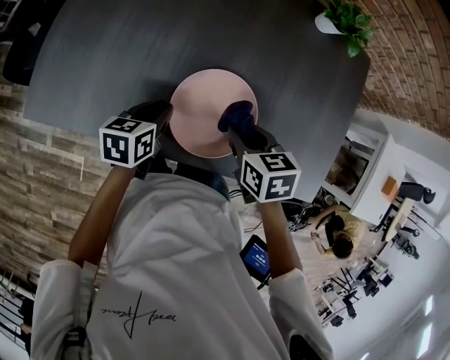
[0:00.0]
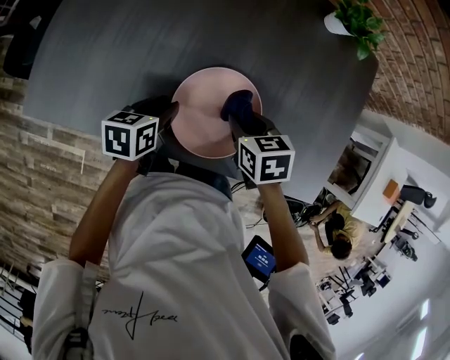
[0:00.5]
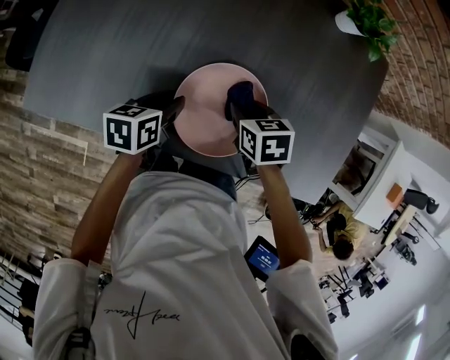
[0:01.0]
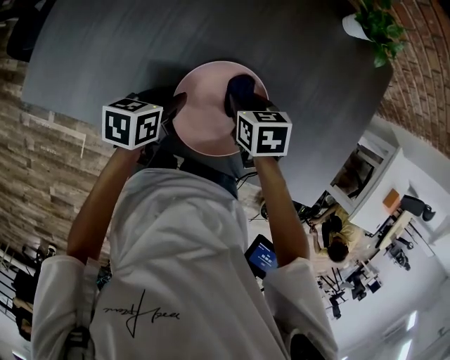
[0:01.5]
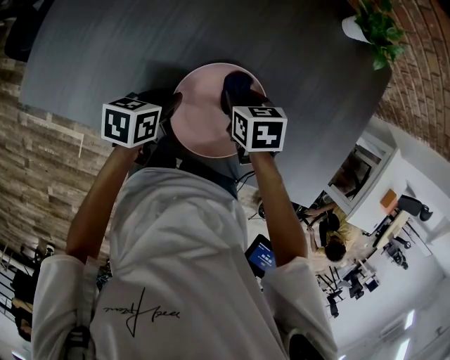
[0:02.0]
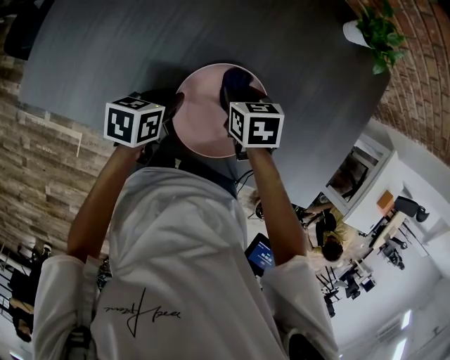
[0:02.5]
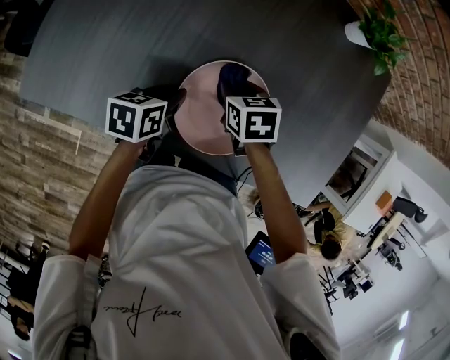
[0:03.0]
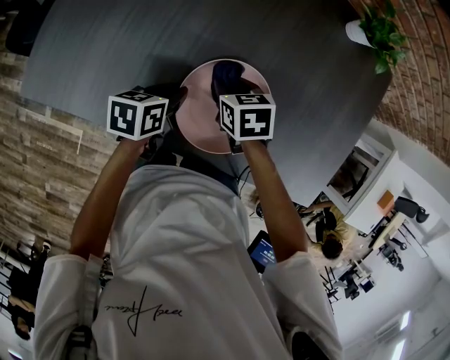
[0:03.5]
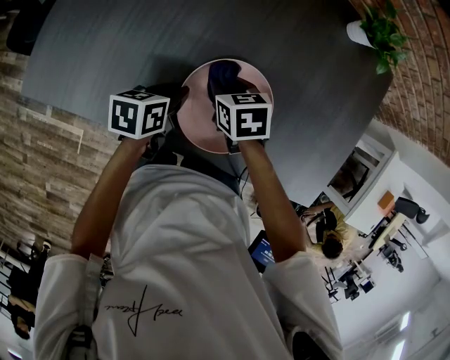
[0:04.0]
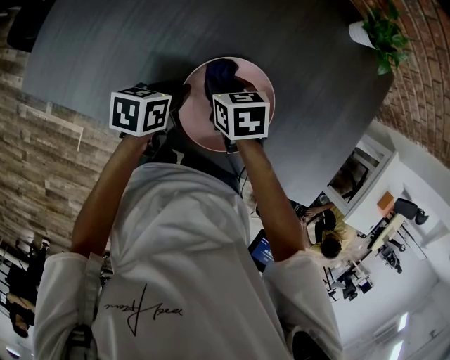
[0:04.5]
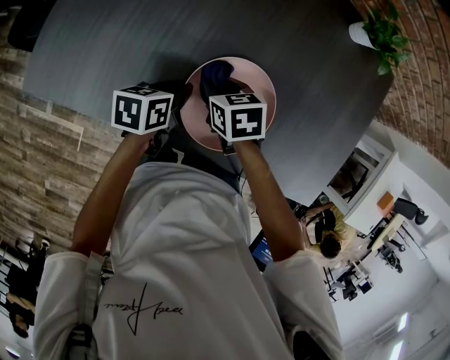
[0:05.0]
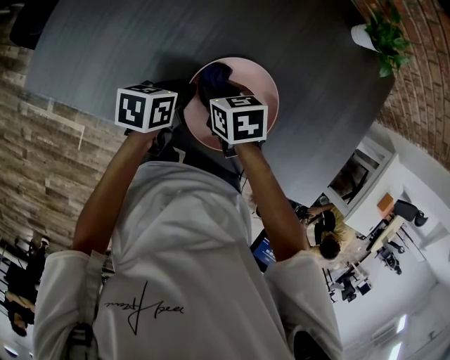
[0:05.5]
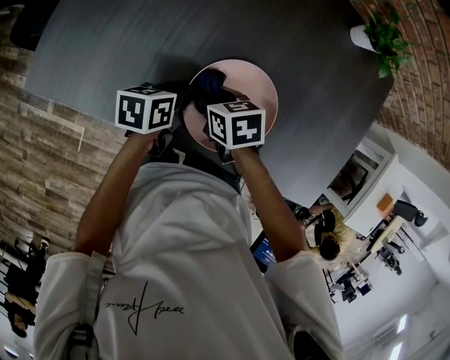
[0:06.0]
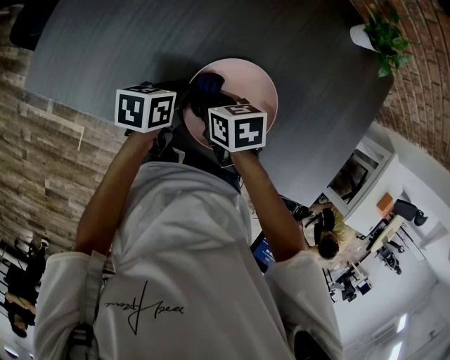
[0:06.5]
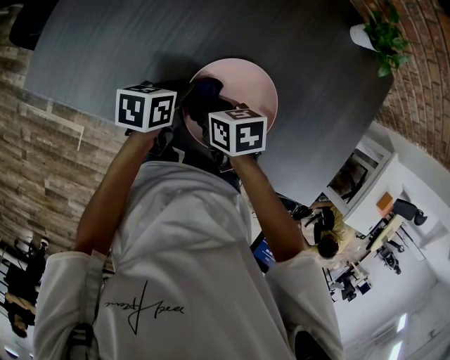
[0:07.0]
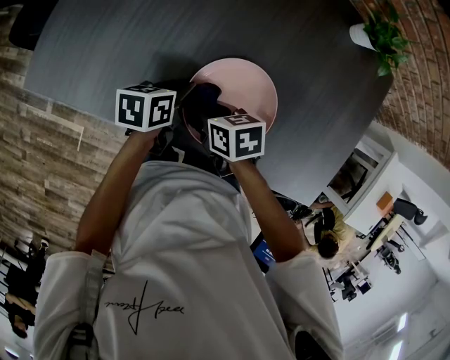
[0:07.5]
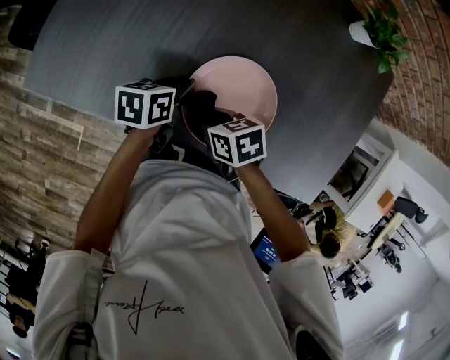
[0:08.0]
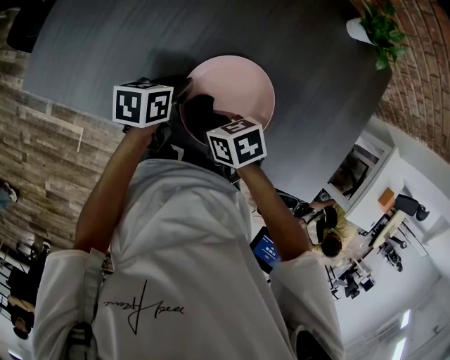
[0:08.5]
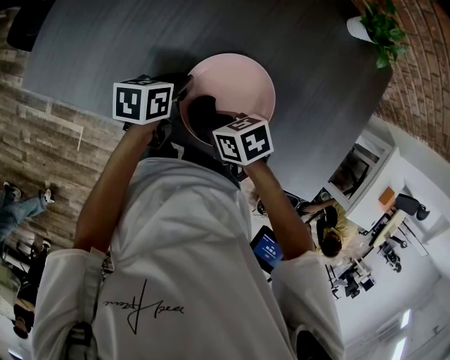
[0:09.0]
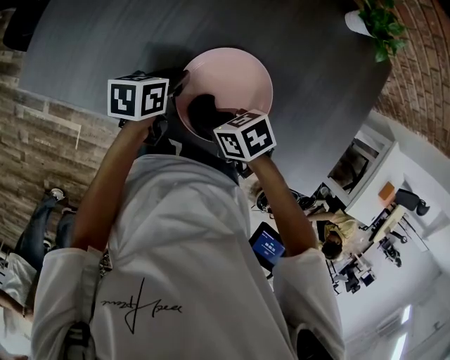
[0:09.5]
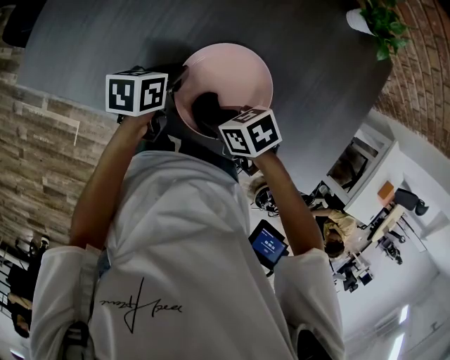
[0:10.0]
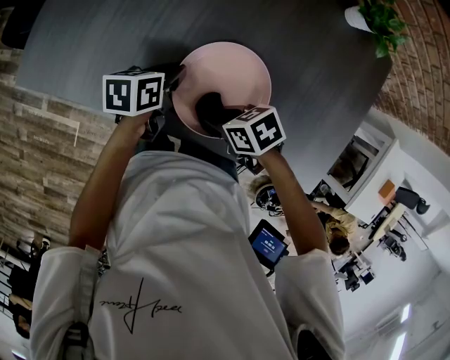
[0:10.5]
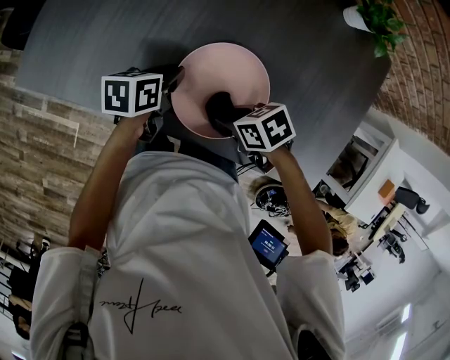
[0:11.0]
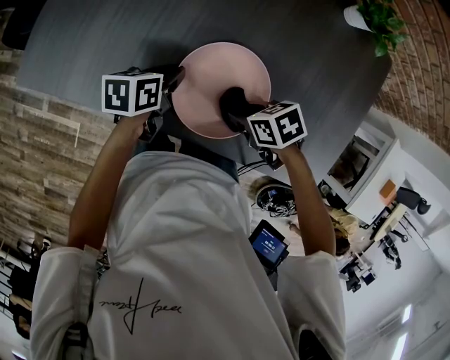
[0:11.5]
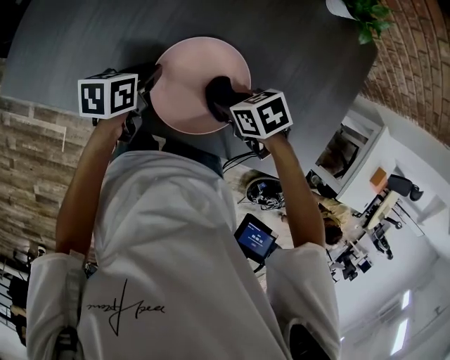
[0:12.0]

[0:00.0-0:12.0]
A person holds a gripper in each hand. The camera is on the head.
0:00.0 to 0:02.0: The right gripper travels downward and forward by roughly 10 cm.
0:02.0 to 0:04.0: The right gripper travels to the left by roughly 5 cm.
0:04.0 to 0:06.0: The right gripper ends up some 5 cm from where it was.
0:06.0 to 0:08.0: The right gripper changes place by some 5 cm.
0:08.0 to 0:10.0: The right gripper ends up roughly 5 cm from where it was.
0:10.0 to 0:12.0: The right gripper shifts by roughly 10 cm.

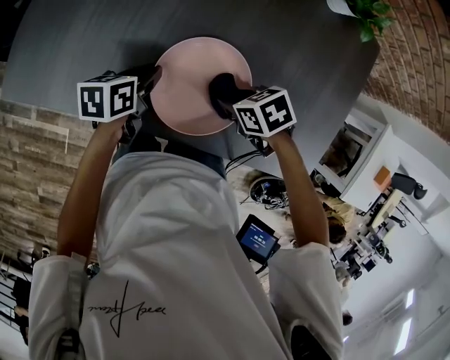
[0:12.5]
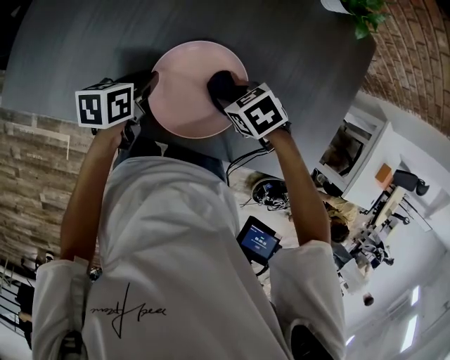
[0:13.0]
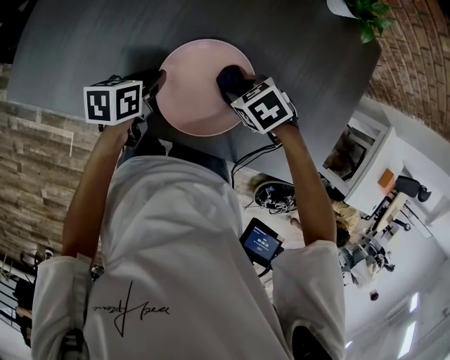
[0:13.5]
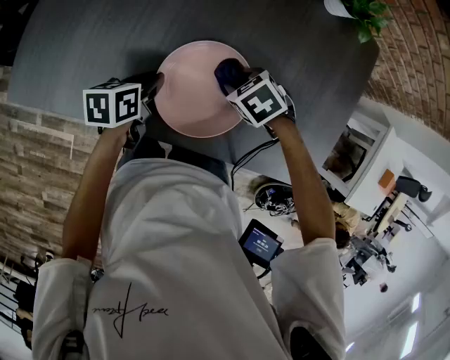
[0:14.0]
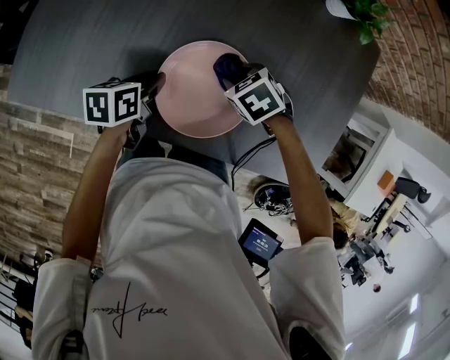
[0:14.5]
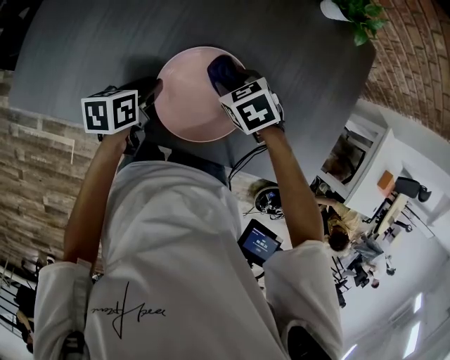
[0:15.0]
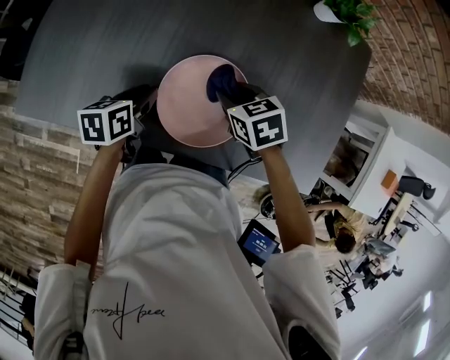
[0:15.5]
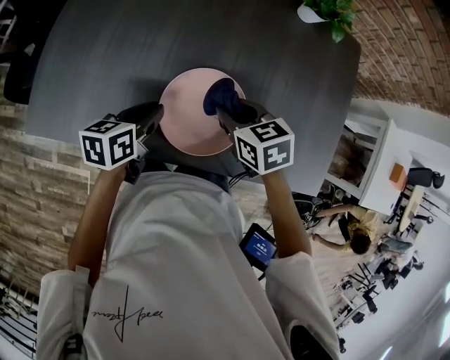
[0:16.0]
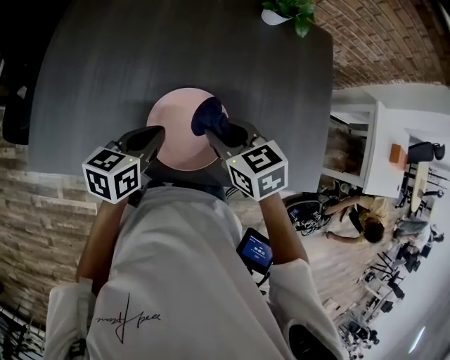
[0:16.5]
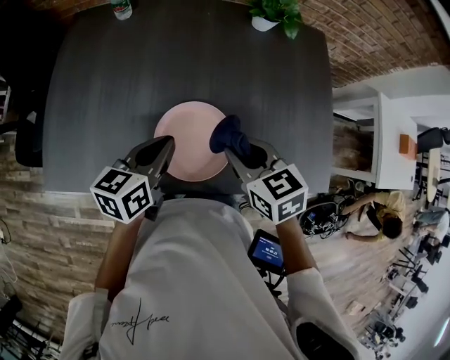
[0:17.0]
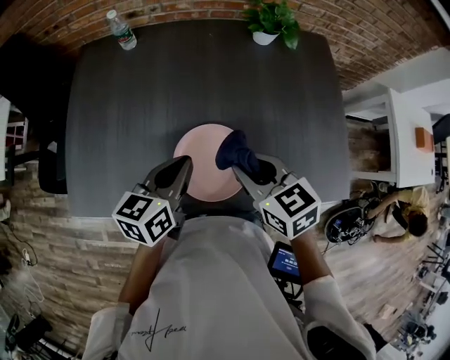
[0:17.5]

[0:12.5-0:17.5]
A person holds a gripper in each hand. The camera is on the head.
0:12.5 to 0:15.0: The right gripper changes place by roughly 5 cm, and changes its angle by some 20 degrees.
0:15.0 to 0:17.5: The grippers both shift upward by some 20 cm. The left gripper changes its angle by about 30 degrees, and closes up, while the right gripper points its fingers approximately 40 degrees further upward.

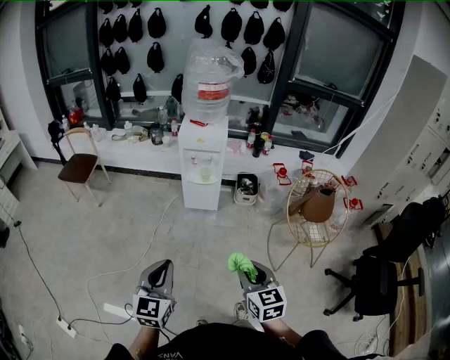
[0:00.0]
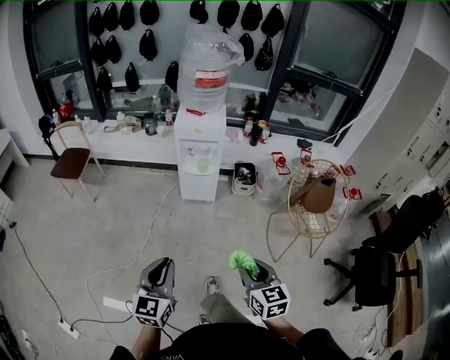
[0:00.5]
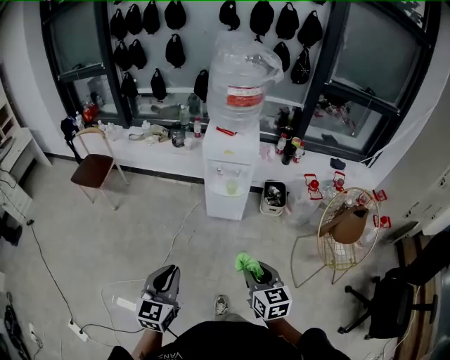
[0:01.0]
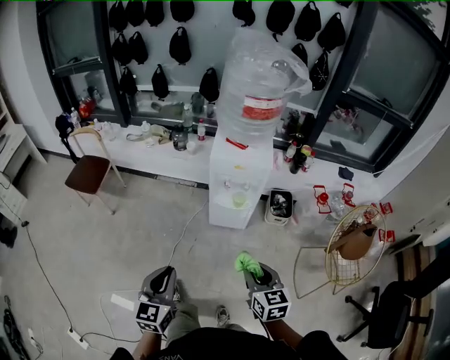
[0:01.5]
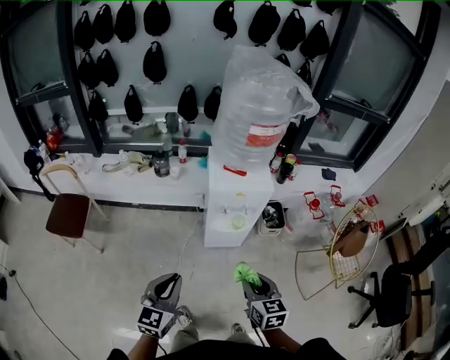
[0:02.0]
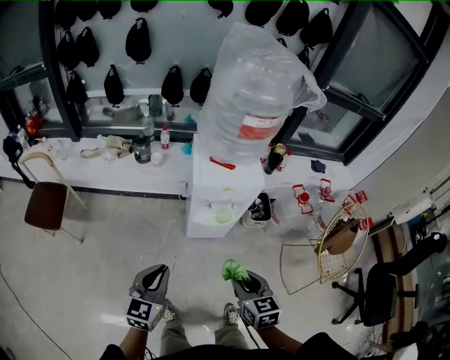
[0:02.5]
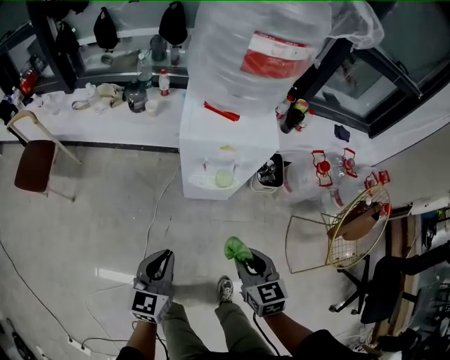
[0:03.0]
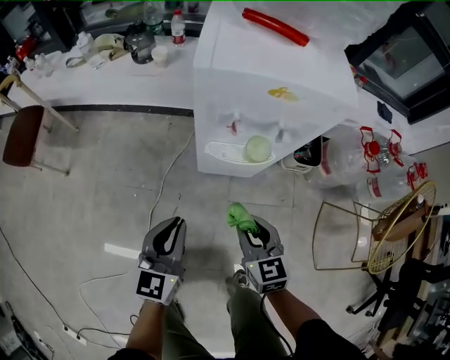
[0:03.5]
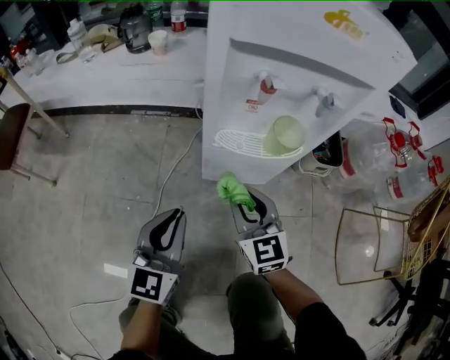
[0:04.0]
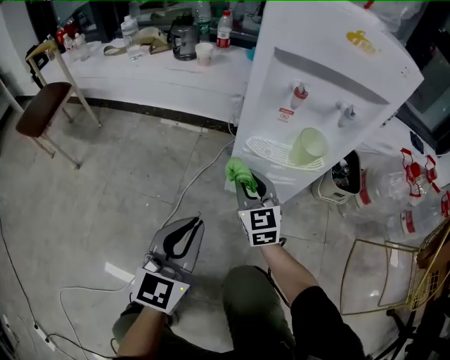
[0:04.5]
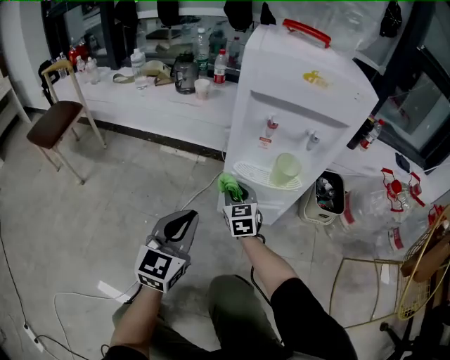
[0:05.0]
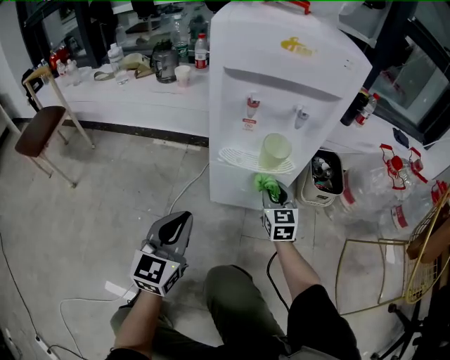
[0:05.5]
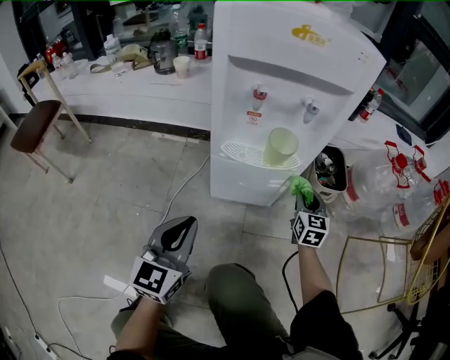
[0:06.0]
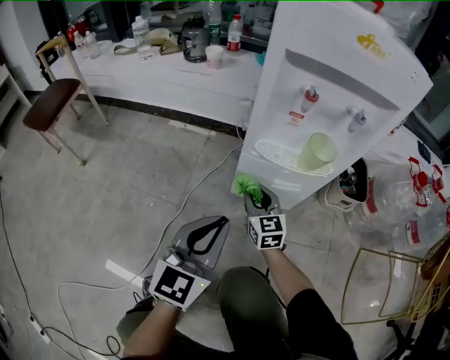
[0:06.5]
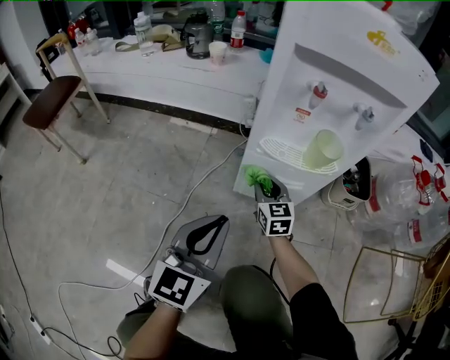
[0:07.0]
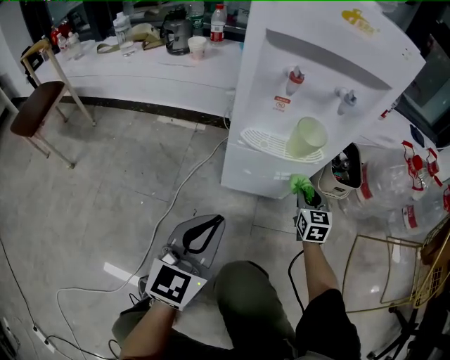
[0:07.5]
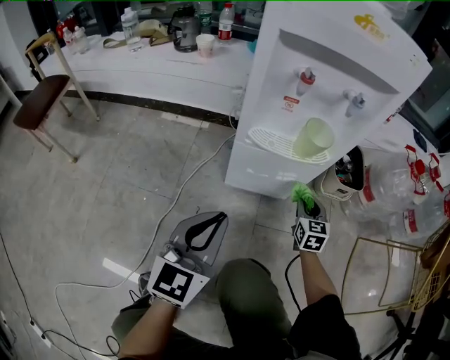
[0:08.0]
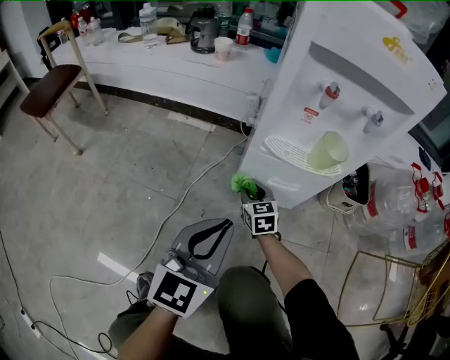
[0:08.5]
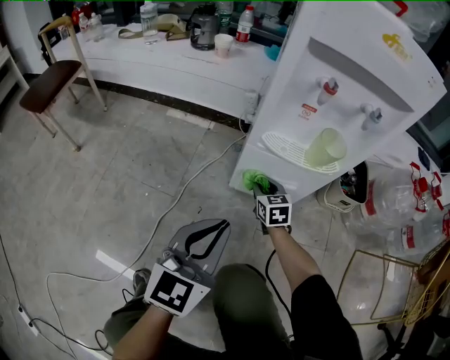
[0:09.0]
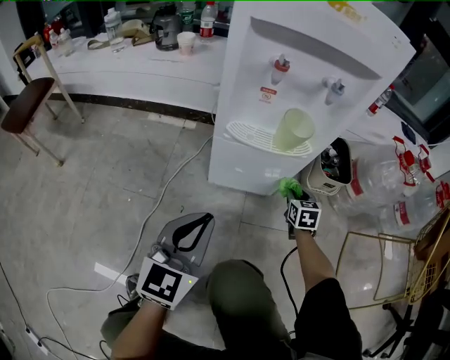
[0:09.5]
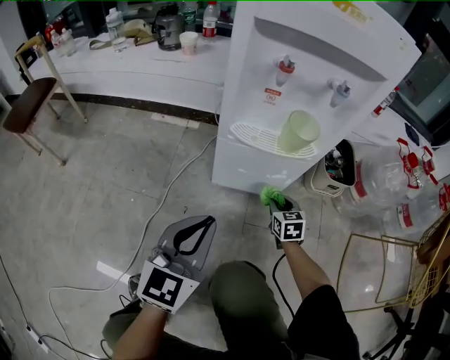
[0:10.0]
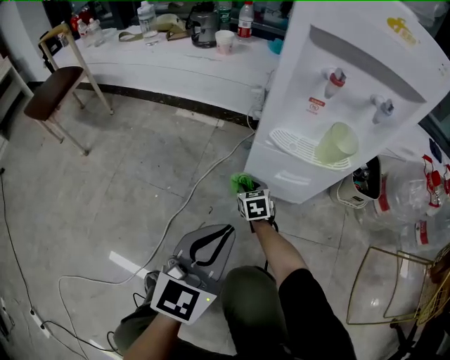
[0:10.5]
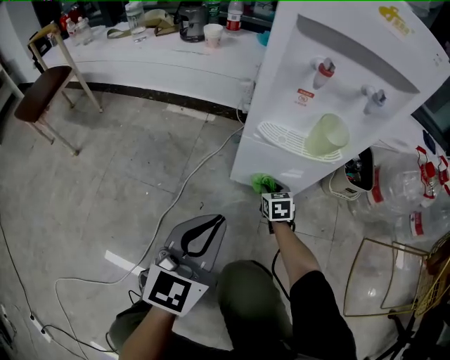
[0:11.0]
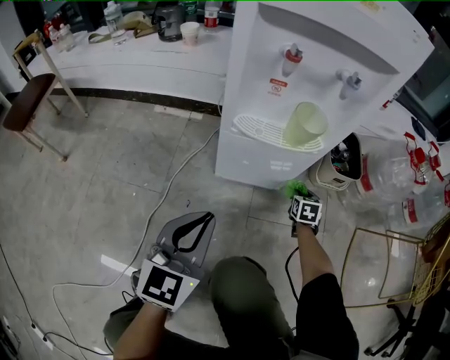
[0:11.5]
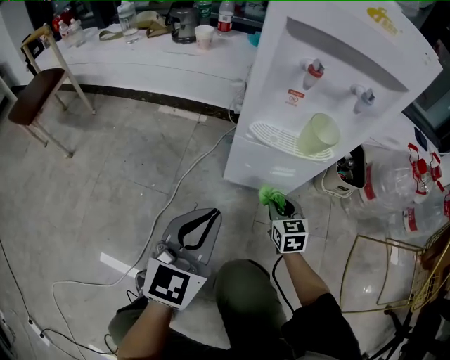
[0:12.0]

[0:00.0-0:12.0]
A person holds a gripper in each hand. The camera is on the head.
0:00.0 to 0:02.0: The two grippers travel together, forward and to the left, roughly 40 cm.
0:02.0 to 0:04.0: The grippers both shift downward and forward by about 50 cm. The right gripper rotates roughly 20 degrees.
0:04.0 to 0:06.0: The right gripper is displaced to the right by some 25 cm, and swivels some 20 degrees.
0:06.0 to 0:08.0: The right gripper is displaced downward by some 10 cm, and goes to the left and returns, approximately 25 cm each way.
0:08.0 to 0:10.0: The right gripper swings left and right, approximately 30 cm each way, with 2 reversals.
0:10.0 to 0:12.0: The right gripper swings left and right, roughly 30 cm each way, with 2 reversals.
